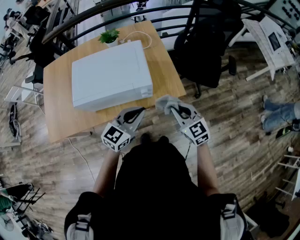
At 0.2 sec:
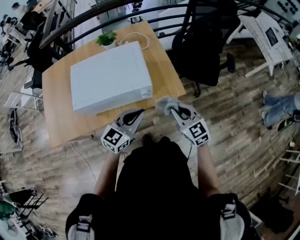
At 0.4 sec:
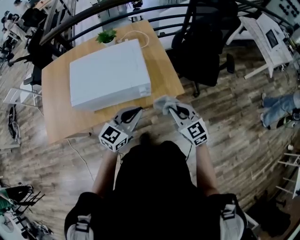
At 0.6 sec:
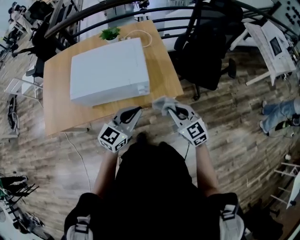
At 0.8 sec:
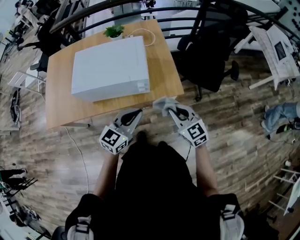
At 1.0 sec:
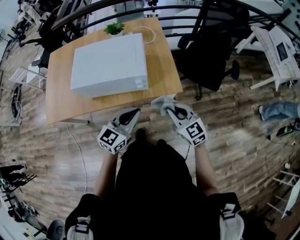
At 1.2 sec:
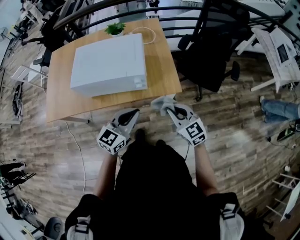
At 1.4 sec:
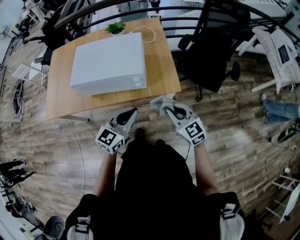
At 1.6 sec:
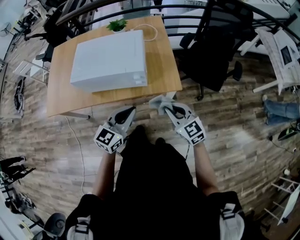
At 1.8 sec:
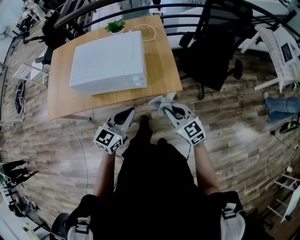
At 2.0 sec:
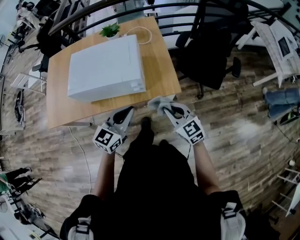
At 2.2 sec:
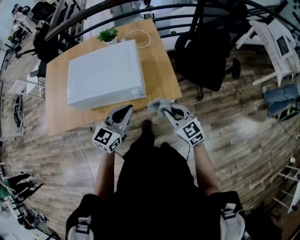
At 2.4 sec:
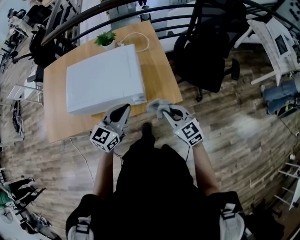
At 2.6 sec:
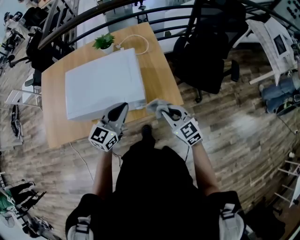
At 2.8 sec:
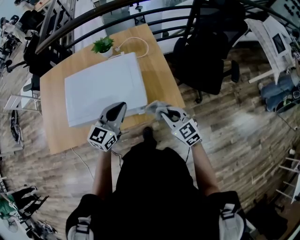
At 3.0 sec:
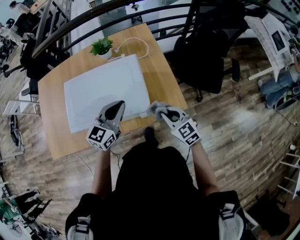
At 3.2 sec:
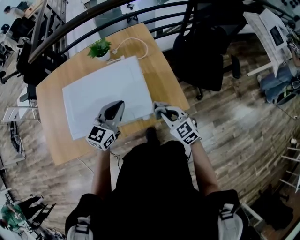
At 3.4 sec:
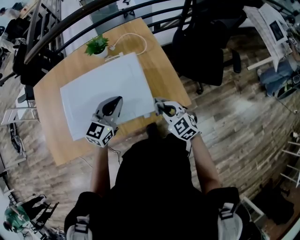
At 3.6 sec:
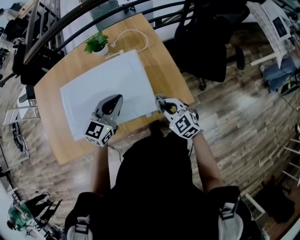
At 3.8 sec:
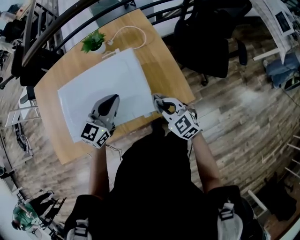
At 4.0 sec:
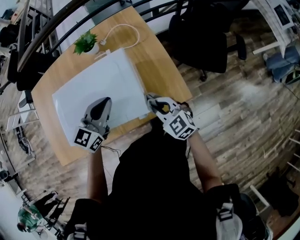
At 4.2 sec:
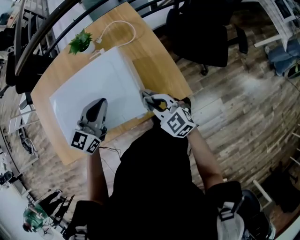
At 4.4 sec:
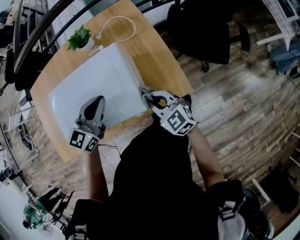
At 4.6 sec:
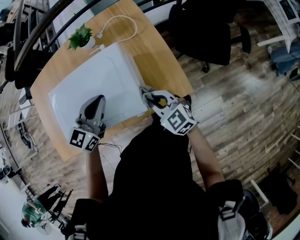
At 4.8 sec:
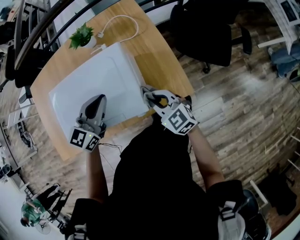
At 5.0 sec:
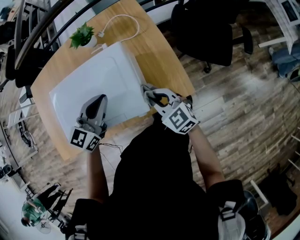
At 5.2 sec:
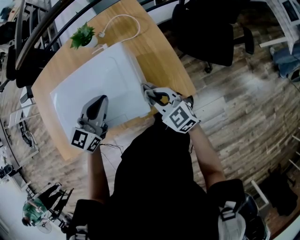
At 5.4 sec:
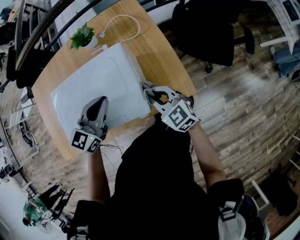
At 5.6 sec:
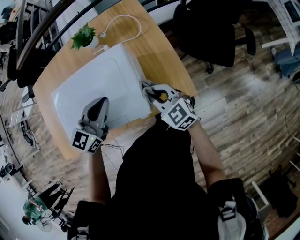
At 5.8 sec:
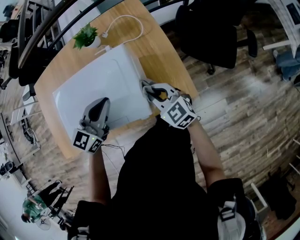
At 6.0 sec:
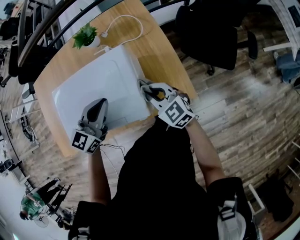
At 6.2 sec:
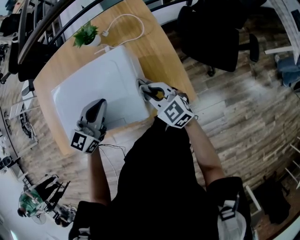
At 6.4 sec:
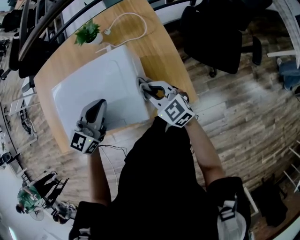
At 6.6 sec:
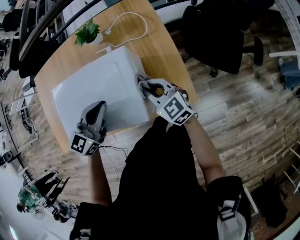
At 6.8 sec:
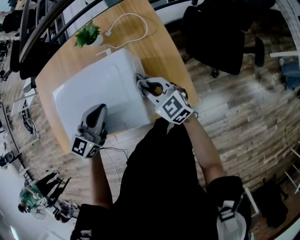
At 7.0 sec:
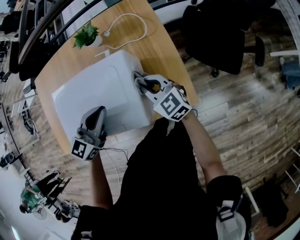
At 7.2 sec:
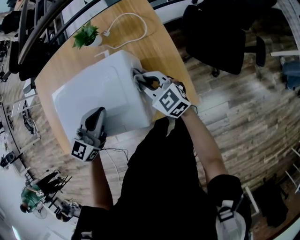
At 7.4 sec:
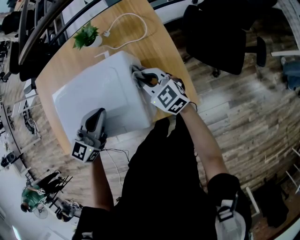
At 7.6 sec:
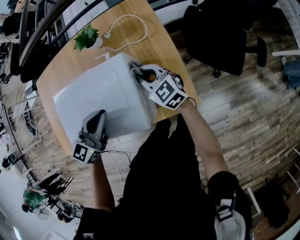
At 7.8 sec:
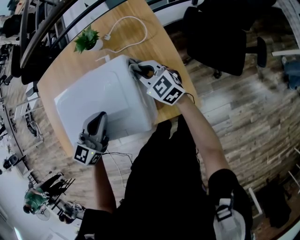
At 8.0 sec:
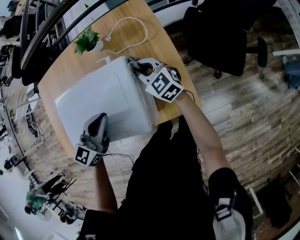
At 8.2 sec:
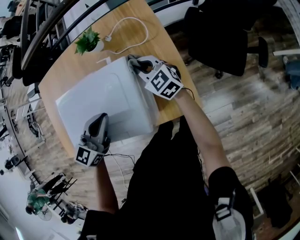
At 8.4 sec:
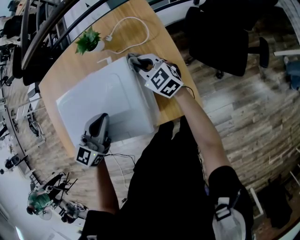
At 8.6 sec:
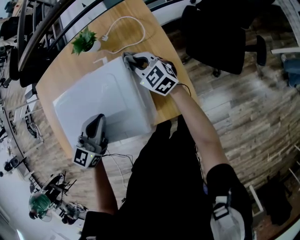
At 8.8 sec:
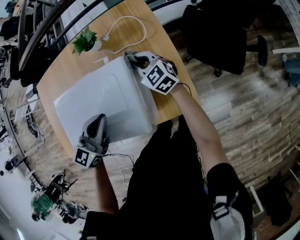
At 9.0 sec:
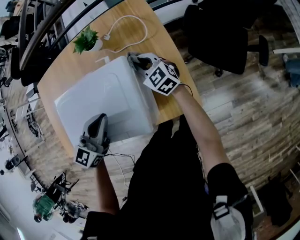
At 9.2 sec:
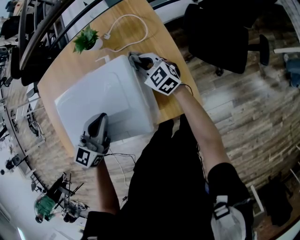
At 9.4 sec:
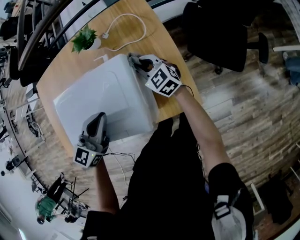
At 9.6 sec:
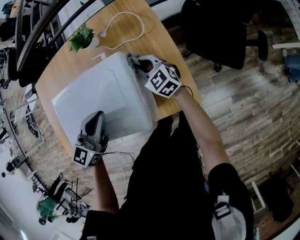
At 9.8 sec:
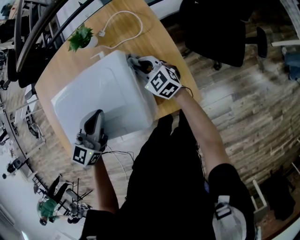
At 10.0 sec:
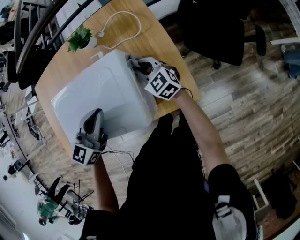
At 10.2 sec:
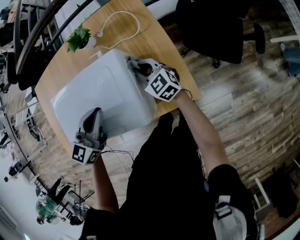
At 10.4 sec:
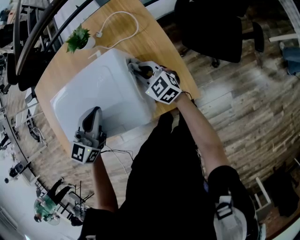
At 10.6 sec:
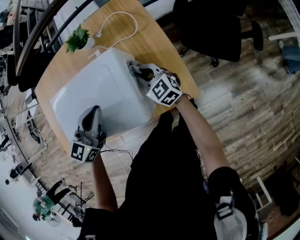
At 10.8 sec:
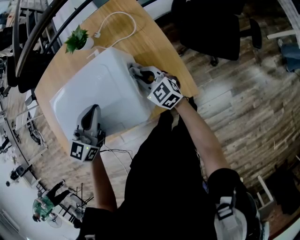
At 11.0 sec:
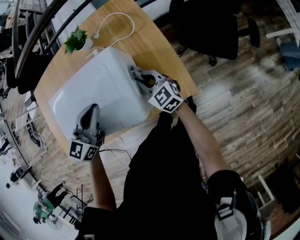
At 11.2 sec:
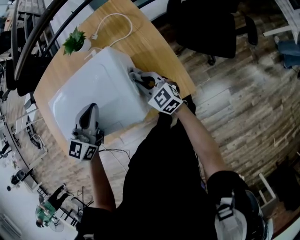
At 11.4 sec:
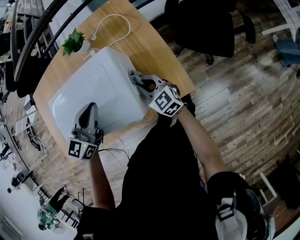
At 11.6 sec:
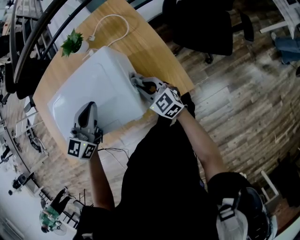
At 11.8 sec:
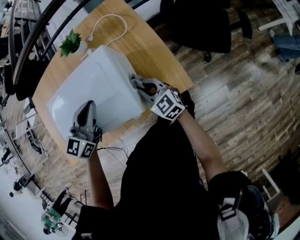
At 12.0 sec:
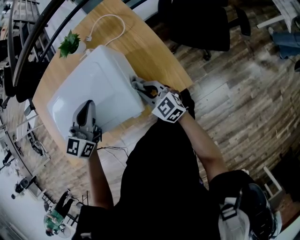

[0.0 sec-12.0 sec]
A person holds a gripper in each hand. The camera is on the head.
0.0 sec to 1.6 sec: Both grippers travel together backward, approximately 5 cm.
1.6 sec to 3.0 sec: Both grippers move forward, some 20 cm.
3.0 sec to 4.4 sec: Both grippers move forward, about 5 cm.
4.4 sec to 6.0 sec: The right gripper heads forward, covering roughly 5 cm.
6.0 sec to 7.6 sec: The right gripper shifts some 10 cm forward.
7.6 sec to 9.0 sec: The right gripper is displaced forward by approximately 5 cm.
9.0 sec to 10.4 sec: The right gripper moves backward, roughly 5 cm.
10.4 sec to 12.0 sec: The right gripper moves backward, approximately 10 cm.

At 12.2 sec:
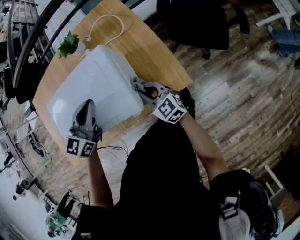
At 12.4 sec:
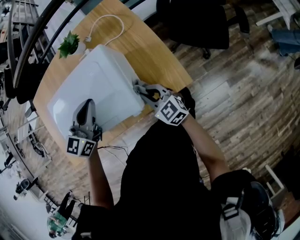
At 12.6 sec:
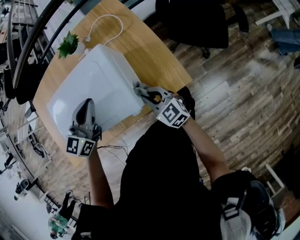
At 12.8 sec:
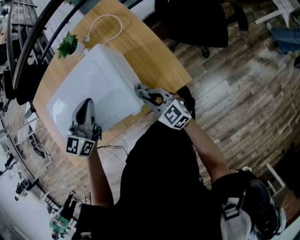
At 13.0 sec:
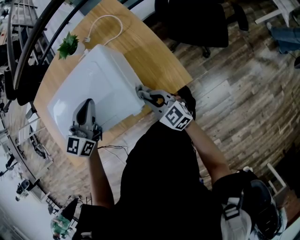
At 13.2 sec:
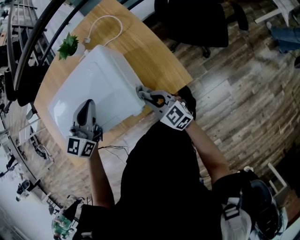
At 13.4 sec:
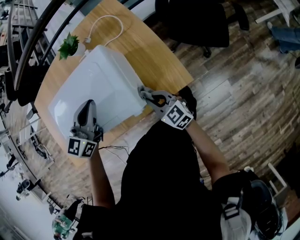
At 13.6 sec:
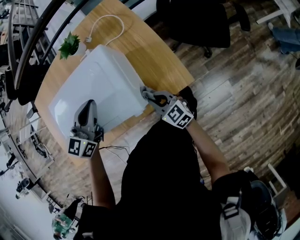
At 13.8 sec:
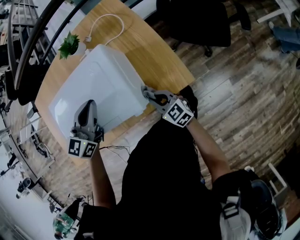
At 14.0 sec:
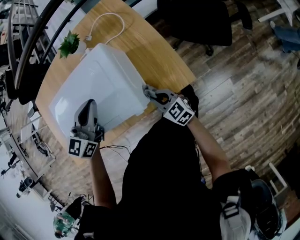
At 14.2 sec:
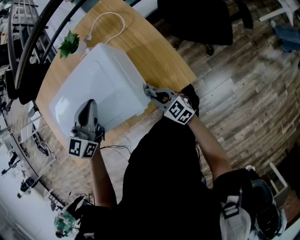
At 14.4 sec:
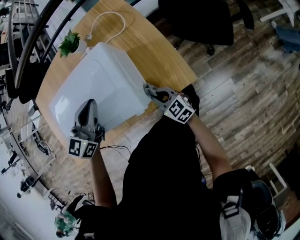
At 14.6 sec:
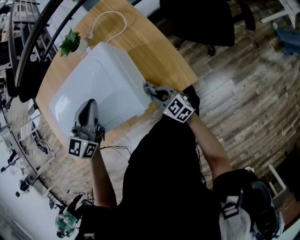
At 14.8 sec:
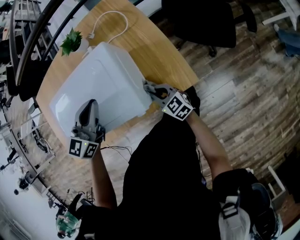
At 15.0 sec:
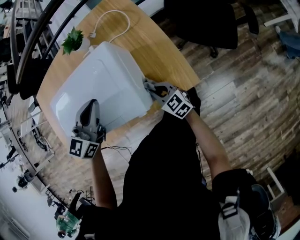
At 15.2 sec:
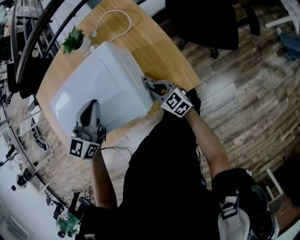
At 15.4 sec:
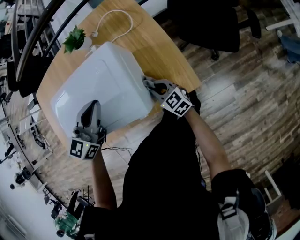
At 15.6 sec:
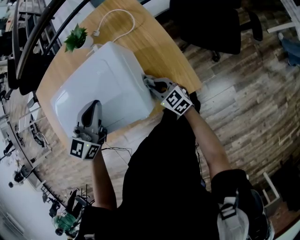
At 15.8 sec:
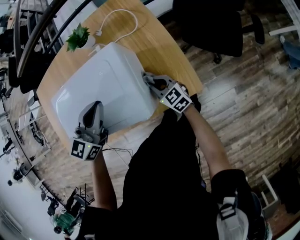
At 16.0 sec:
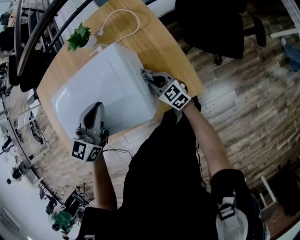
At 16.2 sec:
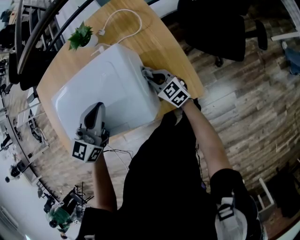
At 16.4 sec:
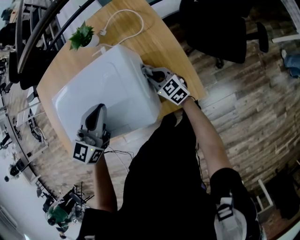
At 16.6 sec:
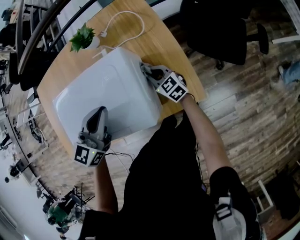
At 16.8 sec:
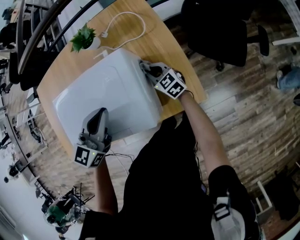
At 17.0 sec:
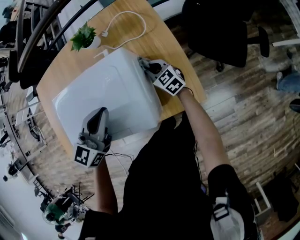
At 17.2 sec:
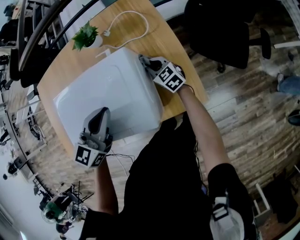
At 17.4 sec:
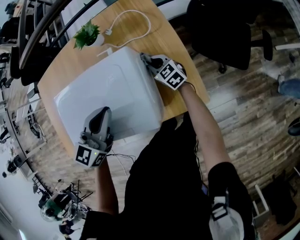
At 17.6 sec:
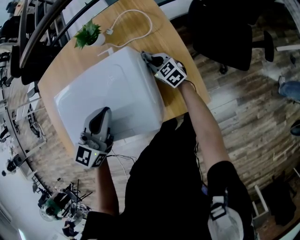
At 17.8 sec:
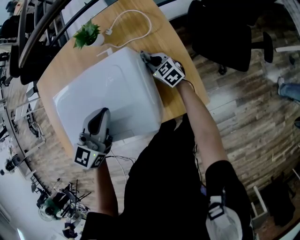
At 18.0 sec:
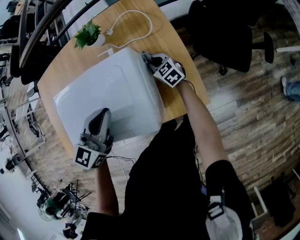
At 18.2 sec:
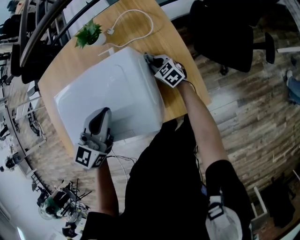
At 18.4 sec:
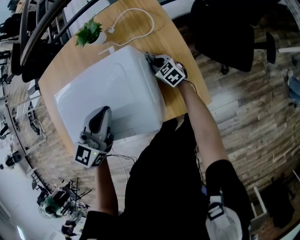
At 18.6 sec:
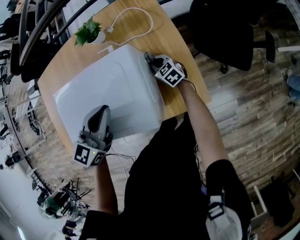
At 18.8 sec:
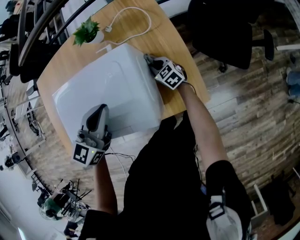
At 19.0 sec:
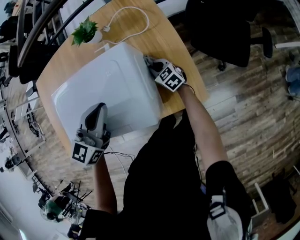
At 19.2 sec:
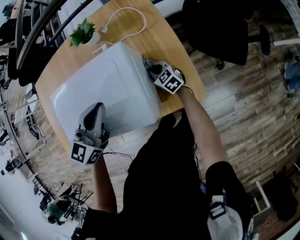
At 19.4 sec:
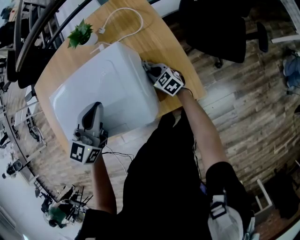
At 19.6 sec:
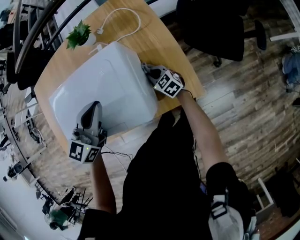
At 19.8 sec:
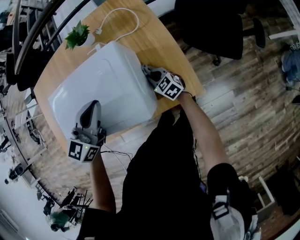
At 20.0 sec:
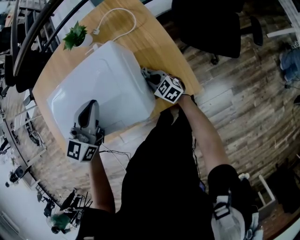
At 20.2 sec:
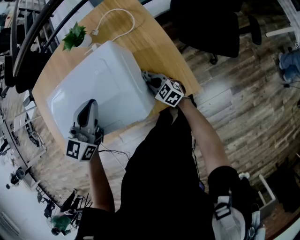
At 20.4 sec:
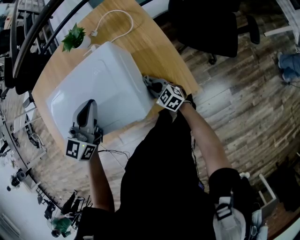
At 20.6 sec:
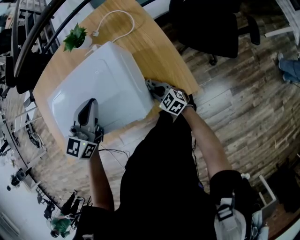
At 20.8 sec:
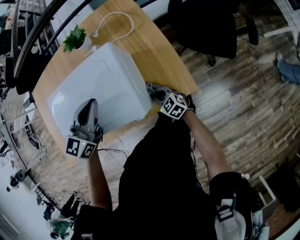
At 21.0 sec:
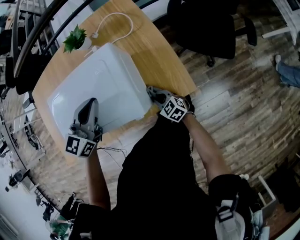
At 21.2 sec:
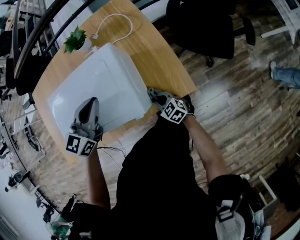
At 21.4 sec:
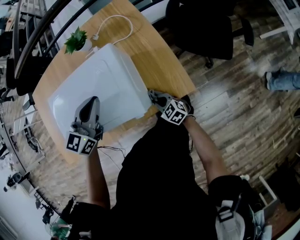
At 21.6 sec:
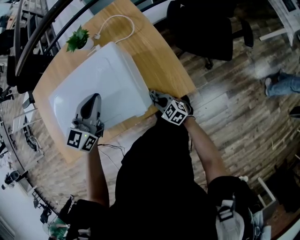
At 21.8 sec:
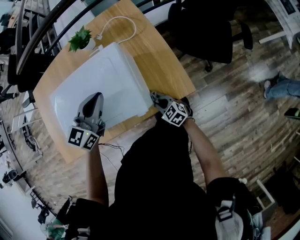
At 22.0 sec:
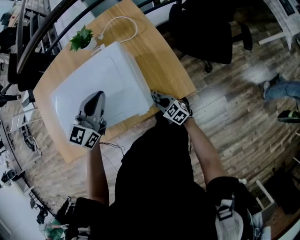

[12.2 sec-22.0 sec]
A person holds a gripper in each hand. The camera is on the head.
12.2 sec to 13.6 sec: The right gripper heads backward, covering roughly 5 cm.
13.6 sec to 15.0 sec: The right gripper ends up about 5 cm from where it was.
15.0 sec to 16.4 sec: The right gripper heads forward, covering approximately 10 cm.
16.4 sec to 17.8 sec: The right gripper moves forward, roughly 10 cm.
17.8 sec to 19.2 sec: The right gripper moves backward, approximately 5 cm.
19.2 sec to 20.6 sec: The right gripper heads backward, covering roughly 15 cm.
20.6 sec to 22.0 sec: The right gripper moves backward, roughly 5 cm.

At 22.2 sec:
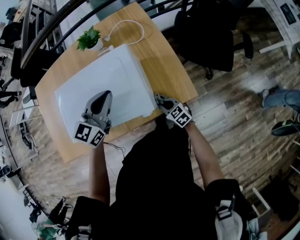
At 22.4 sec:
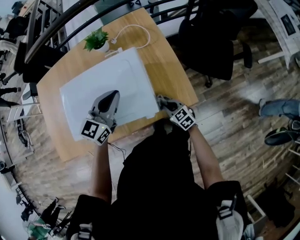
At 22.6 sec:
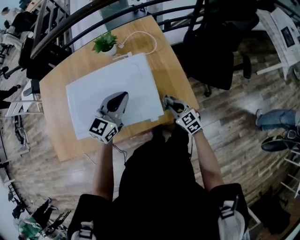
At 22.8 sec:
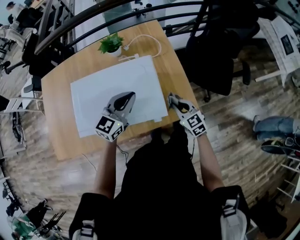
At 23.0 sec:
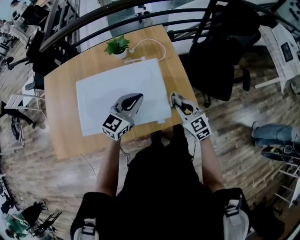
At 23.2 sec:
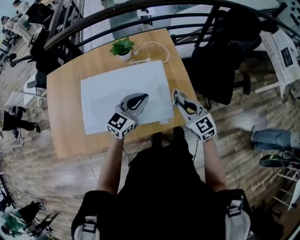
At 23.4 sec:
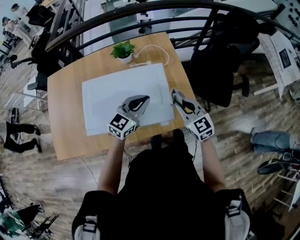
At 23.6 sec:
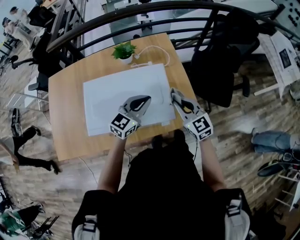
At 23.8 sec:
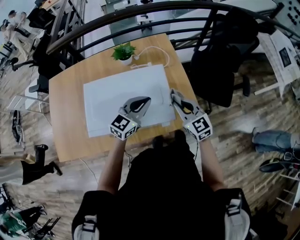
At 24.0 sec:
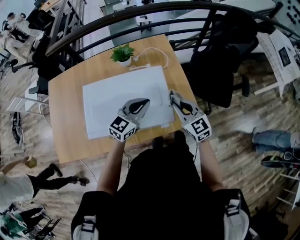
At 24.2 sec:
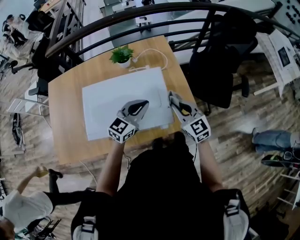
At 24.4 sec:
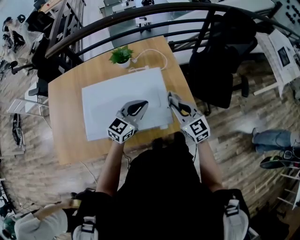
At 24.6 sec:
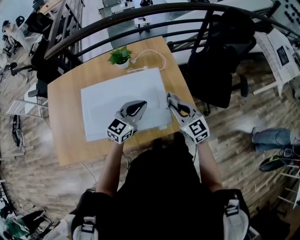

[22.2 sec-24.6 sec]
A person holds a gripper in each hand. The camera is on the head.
22.2 sec to 23.4 sec: The right gripper is displaced upward by roughly 30 cm, and swivels roughly 30 degrees.
23.4 sec to 24.6 sec: Neither gripper changes place.
